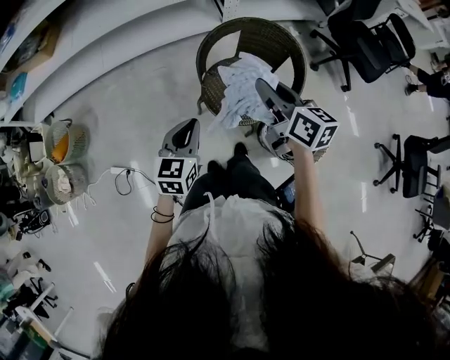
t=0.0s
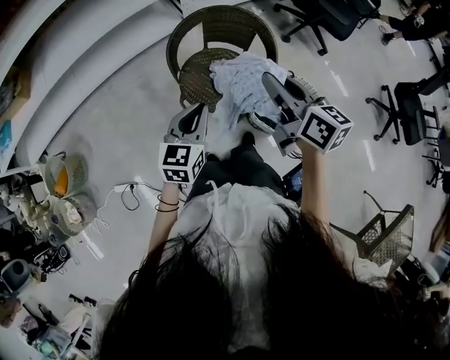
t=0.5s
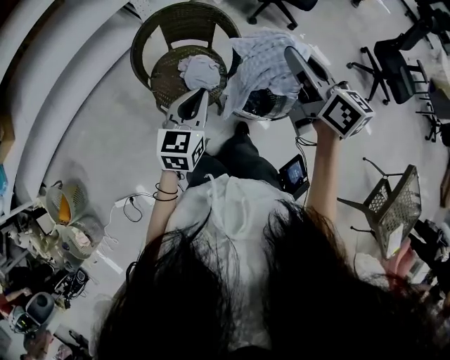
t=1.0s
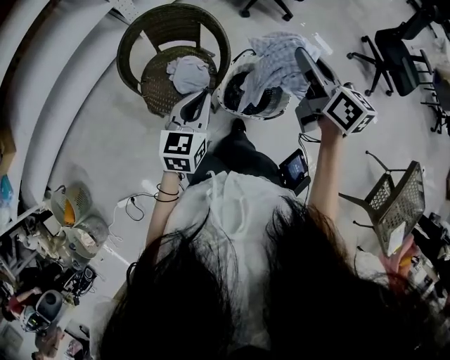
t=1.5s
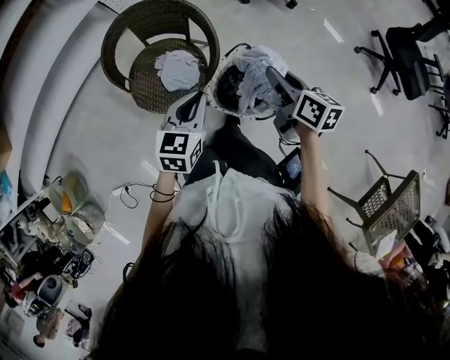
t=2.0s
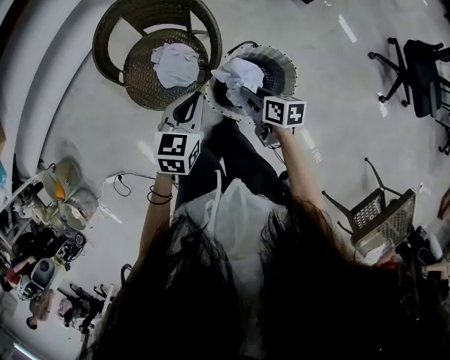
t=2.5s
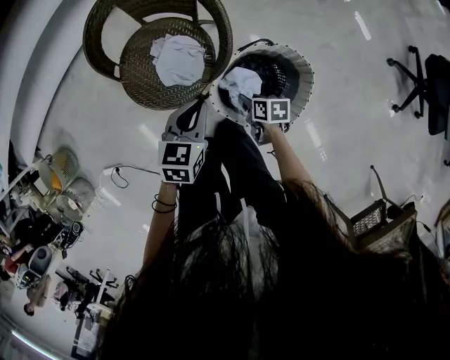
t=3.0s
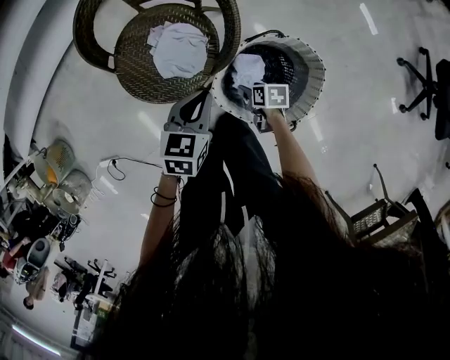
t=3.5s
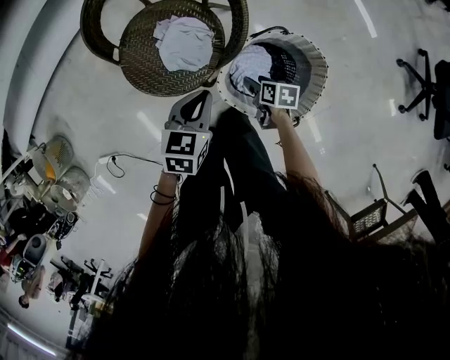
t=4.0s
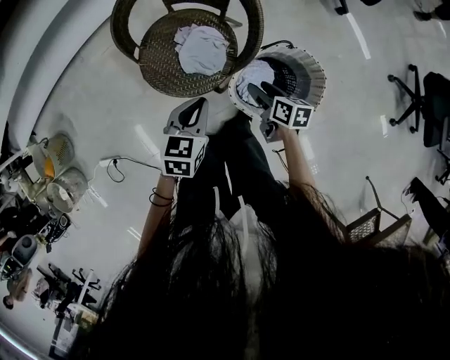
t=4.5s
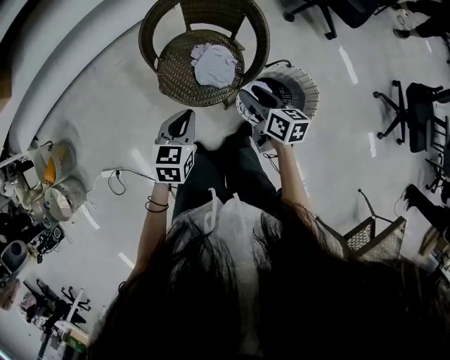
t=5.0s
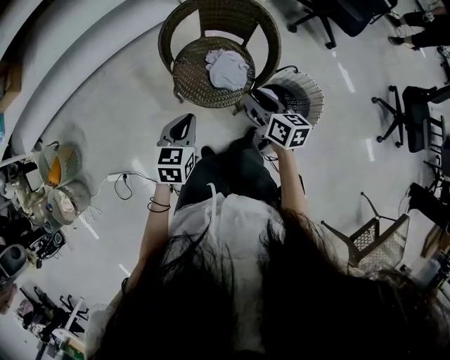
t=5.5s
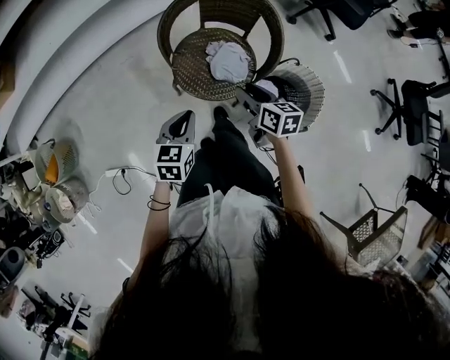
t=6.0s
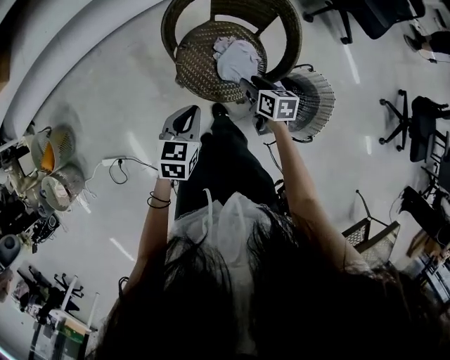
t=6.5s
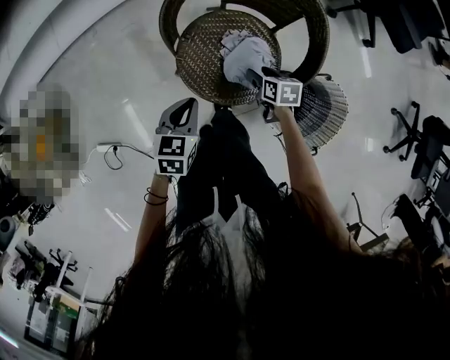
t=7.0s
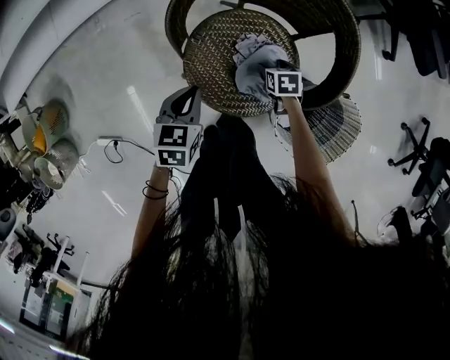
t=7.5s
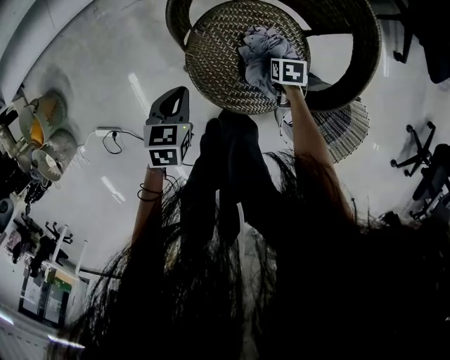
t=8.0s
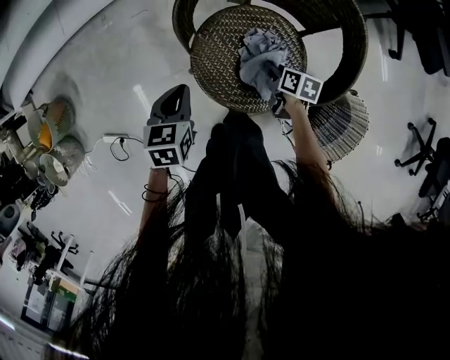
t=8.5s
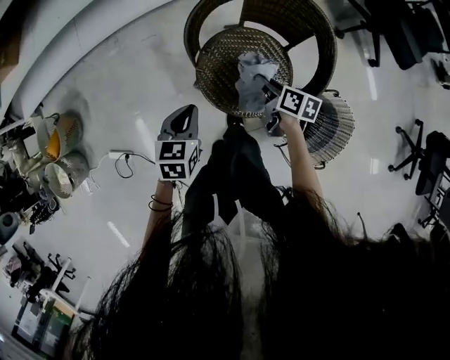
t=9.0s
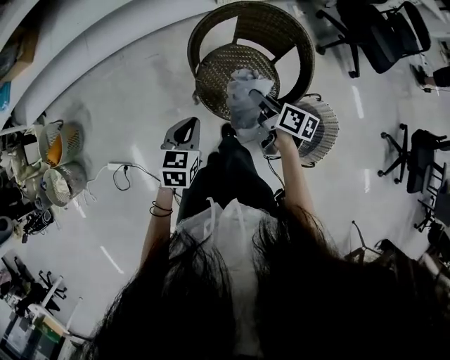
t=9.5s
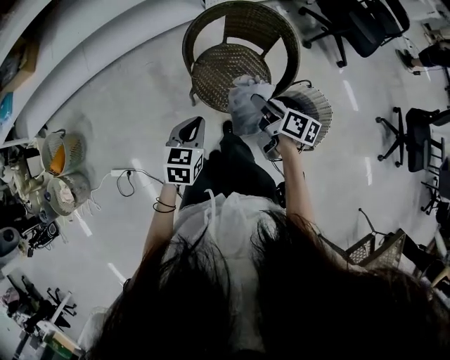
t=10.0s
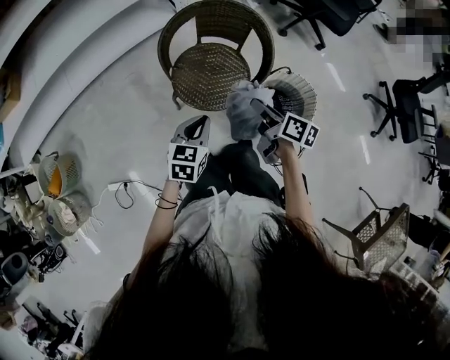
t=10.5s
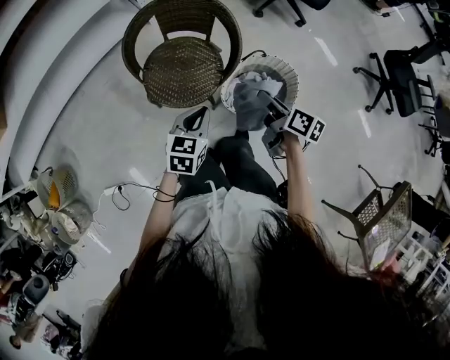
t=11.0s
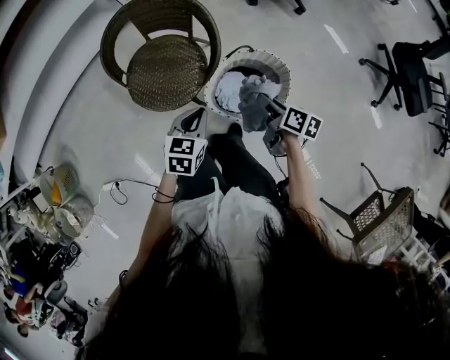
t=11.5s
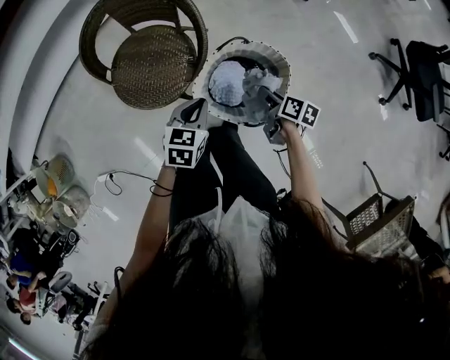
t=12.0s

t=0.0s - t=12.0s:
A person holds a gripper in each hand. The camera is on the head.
t=0.0s - t=2.0s: The left gripper changes place by approximately 35 cm, and rotates approximately 30 degrees; the right gripper ends up about 40 cm from where it was, and turns by approximately 30 degrees.
t=2.0s - t=4.0s: The left gripper is displaced downward by approximately 20 cm, while the right gripper shifts roughly 40 cm downward, swivels about 40 degrees, and opens its fingers.
t=4.0s - t=6.0s: The right gripper heads upward and to the left, covering some 40 cm, and turns by roughly 30 degrees, while the left gripper heads to the left and upward, covering some 30 cm.
t=6.0s - t=8.0s: The left gripper travels downward by some 20 cm, and turns by approximately 20 degrees; the right gripper goes about 40 cm downward, tips its fingers downward by some 40 degrees, and opens, then closes again.
t=8.0s - t=10.0s: The left gripper shifts about 25 cm upward, and rotates roughly 20 degrees. The right gripper heads upward, covering roughly 40 cm, and angles its fingers upward, by about 50 degrees.
t=10.0s - t=12.0s: The left gripper travels to the right by some 35 cm, and turns by some 20 degrees. The right gripper travels to the right and downward by roughly 40 cm, and rotates some 20 degrees.

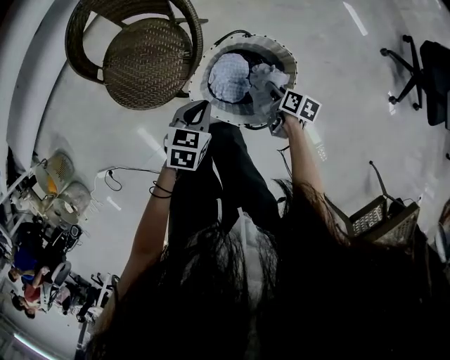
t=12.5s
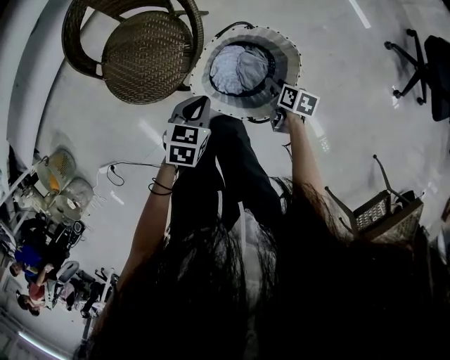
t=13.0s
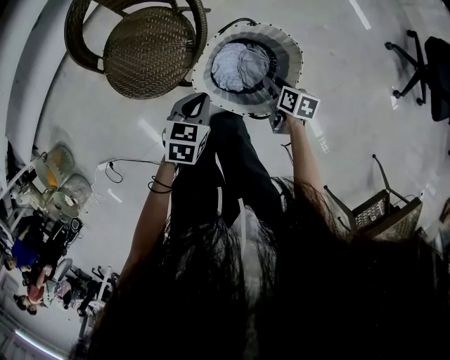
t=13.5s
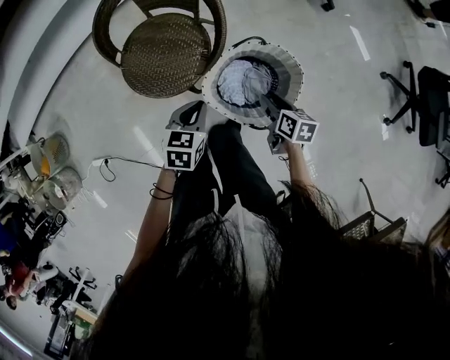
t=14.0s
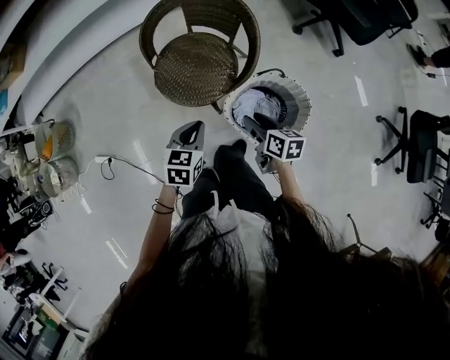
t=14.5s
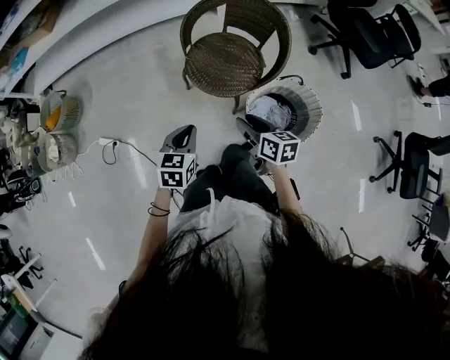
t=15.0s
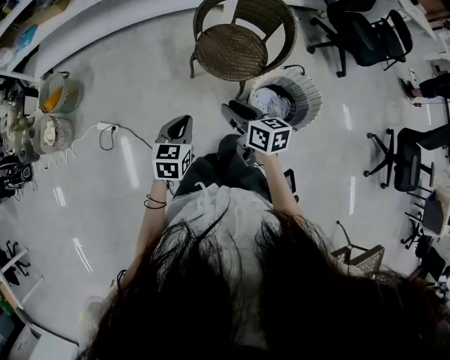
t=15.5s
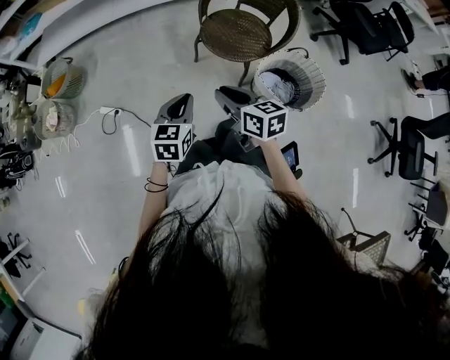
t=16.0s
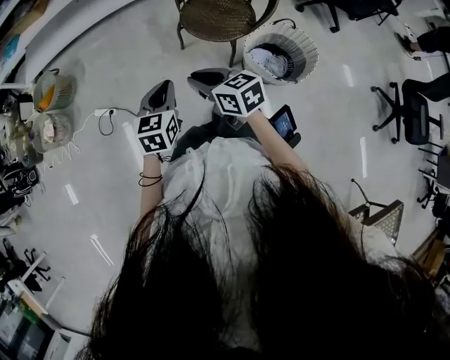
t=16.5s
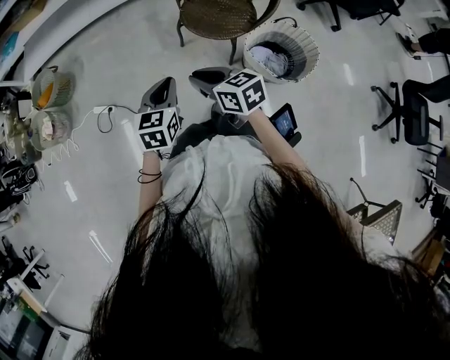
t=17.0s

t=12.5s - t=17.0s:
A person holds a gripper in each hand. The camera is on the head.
t=12.5s - t=14.5s: The left gripper shifts some 20 cm to the left, upward and backward, and changes its angle by some 30 degrees; the right gripper heads upward and to the left, covering about 30 cm, and swivels roughly 40 degrees.
t=14.5s - t=17.0s: The left gripper heads to the left and backward, covering some 30 cm, while the right gripper travels to the left and upward by roughly 40 cm, rotates approximately 40 degrees, and closes.

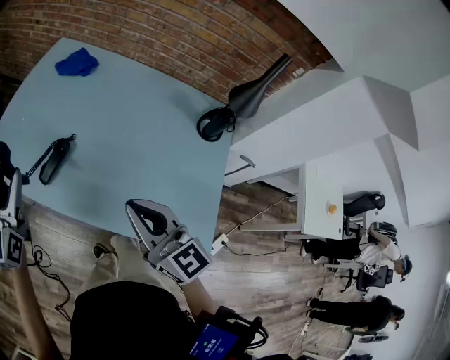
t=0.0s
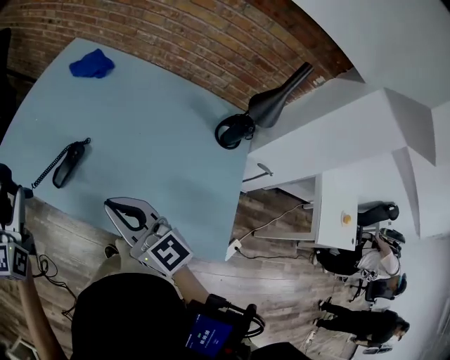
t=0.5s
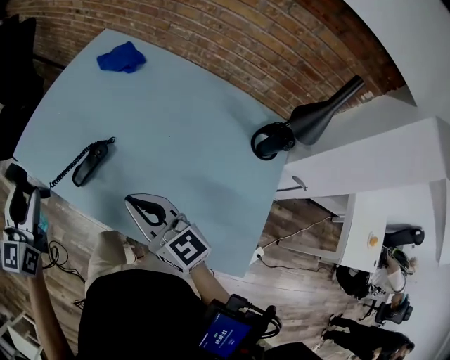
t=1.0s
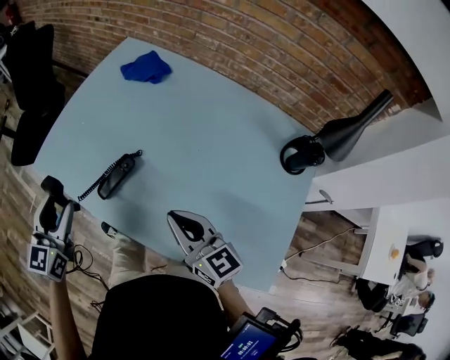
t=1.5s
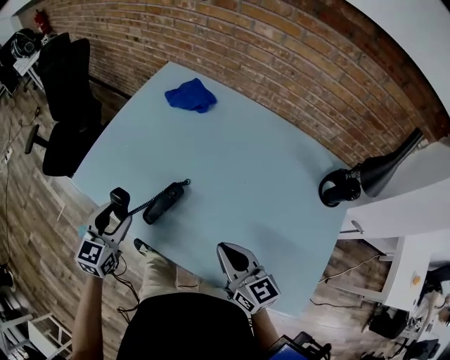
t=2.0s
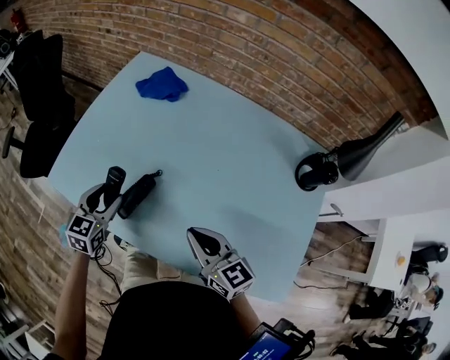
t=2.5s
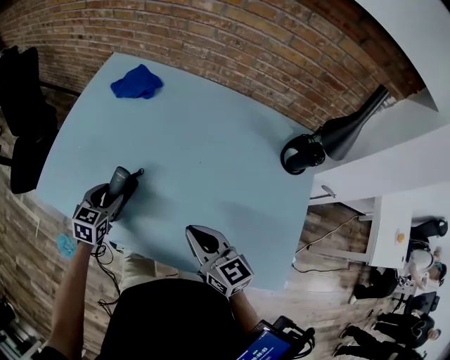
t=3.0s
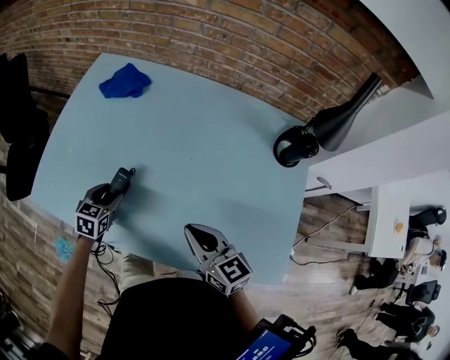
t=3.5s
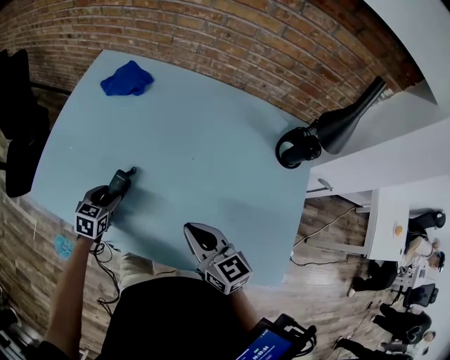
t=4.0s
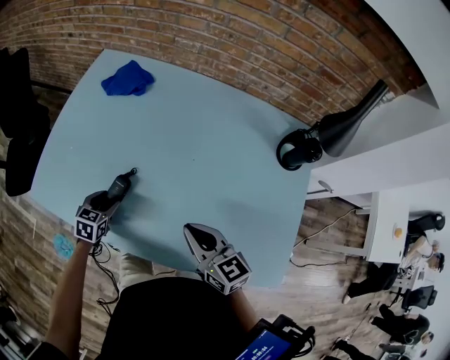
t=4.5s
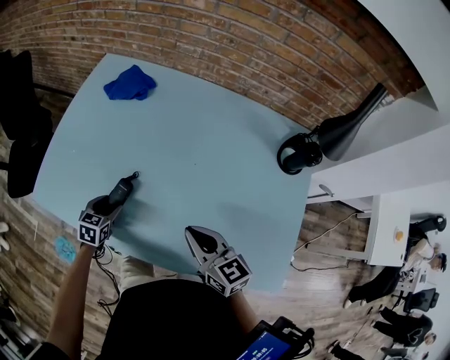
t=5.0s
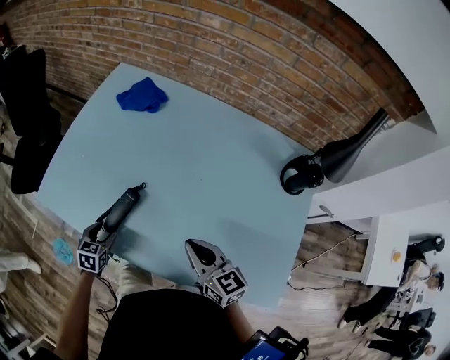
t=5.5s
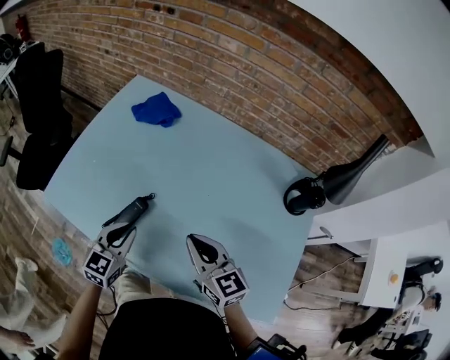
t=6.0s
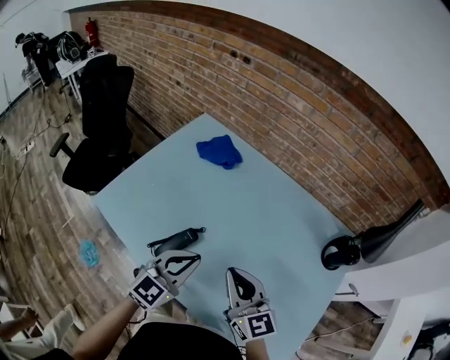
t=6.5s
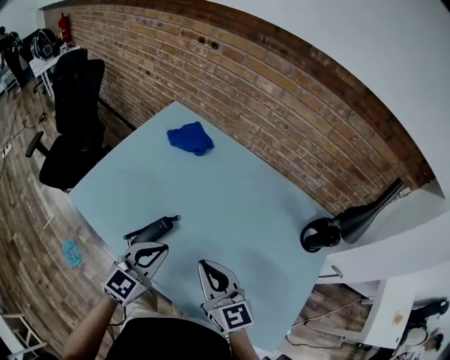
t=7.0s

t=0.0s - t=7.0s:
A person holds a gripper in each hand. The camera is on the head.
t=0.0s - t=2.0s: The grippers both shift downward and forward by some 20 cm. The left gripper turns by some 20 degrees.
t=2.0s - t=3.5s: The left gripper travels downward, to the right and forward by roughly 20 cm, and swivels some 30 degrees.
t=3.5s - t=5.0s: The left gripper shifts by about 5 cm.
t=5.0s - t=7.0s: The left gripper shifts approximately 25 cm upward, angles its fingers upward, by roughly 30 degrees, and closes its fingers; the right gripper travels upward and to the left by roughly 10 cm, and rotates some 20 degrees.

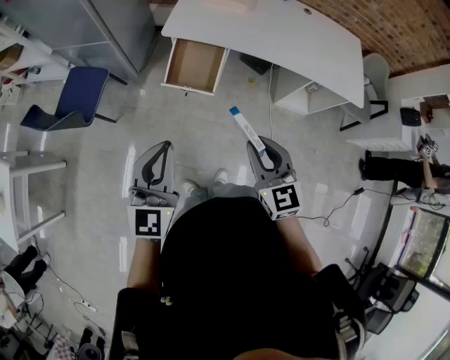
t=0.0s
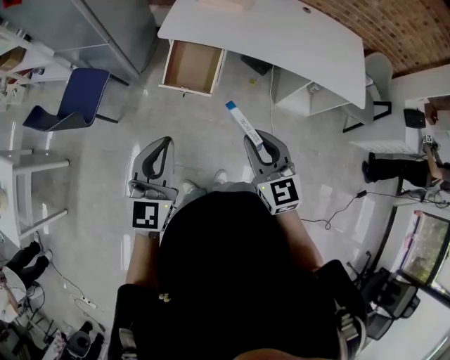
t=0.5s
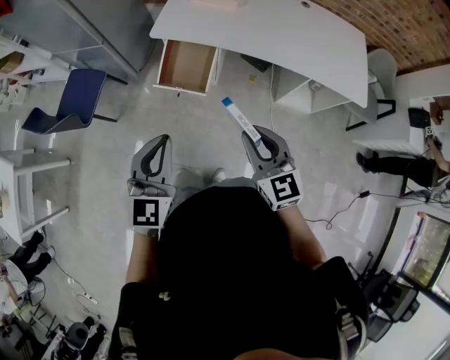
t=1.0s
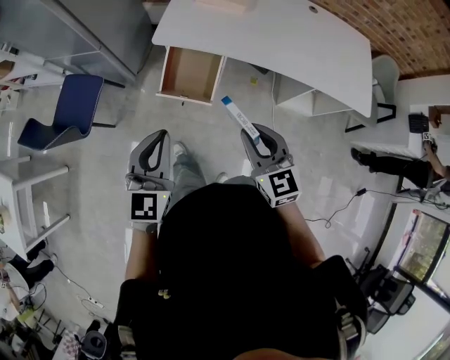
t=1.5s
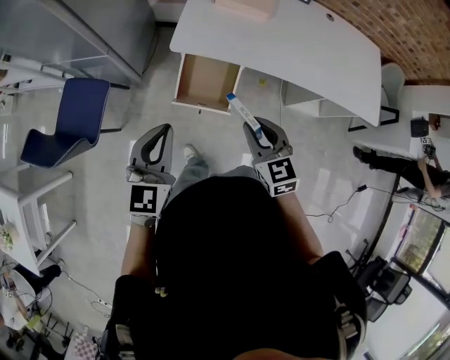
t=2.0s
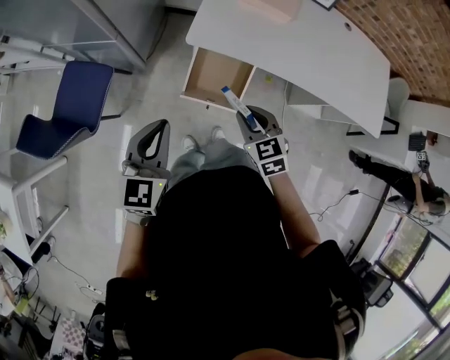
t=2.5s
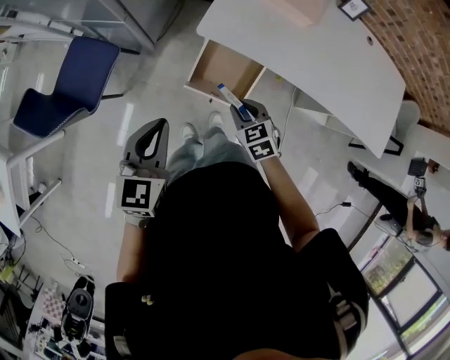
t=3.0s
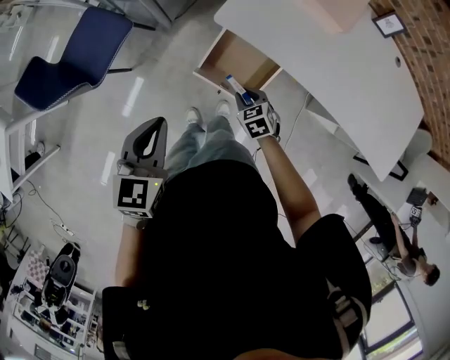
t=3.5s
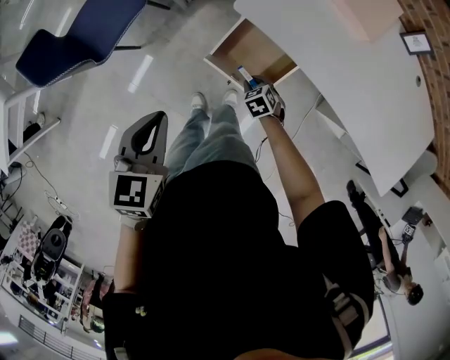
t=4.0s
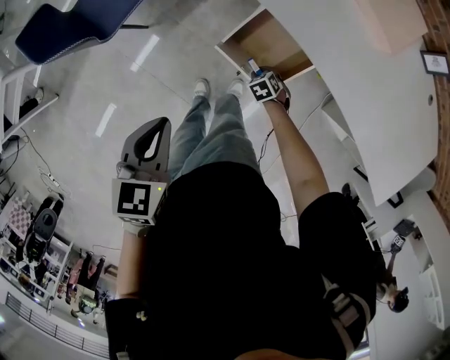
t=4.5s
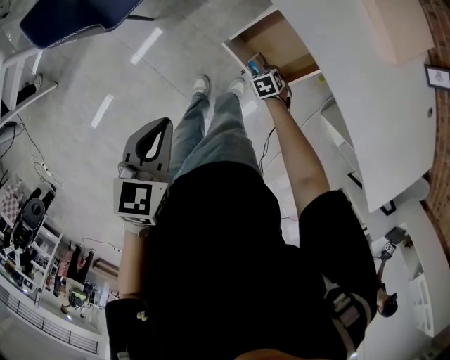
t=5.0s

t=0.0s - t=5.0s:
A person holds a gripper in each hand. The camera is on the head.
t=0.0s - t=2.5s: The right gripper travels forward, downward and to the left by about 35 cm, and turns by approximately 20 degrees, while the left gripper goes some 30 cm forward and to the left.
t=2.5s - t=5.0s: The left gripper travels downward by roughly 10 cm, and swivels some 40 degrees. The right gripper moves downward, some 40 cm, and tips its fingers downward by roughly 30 degrees.
